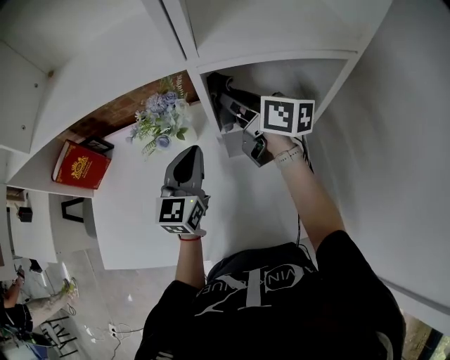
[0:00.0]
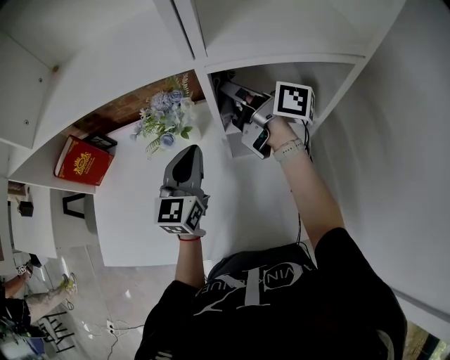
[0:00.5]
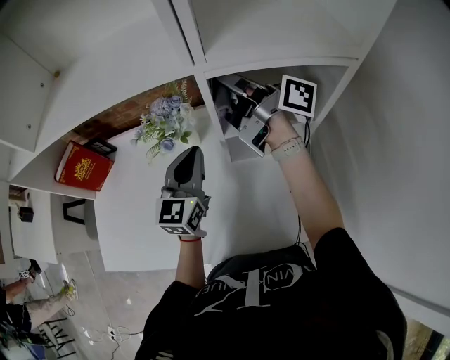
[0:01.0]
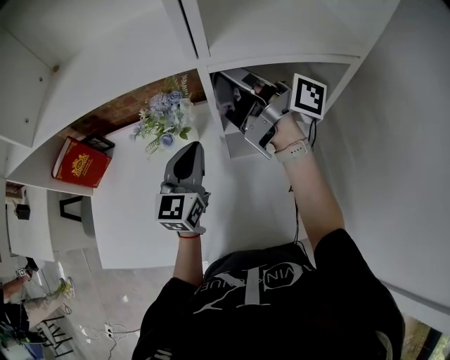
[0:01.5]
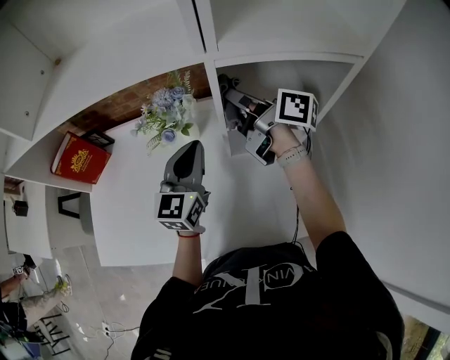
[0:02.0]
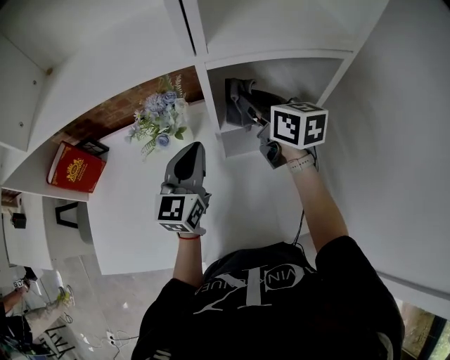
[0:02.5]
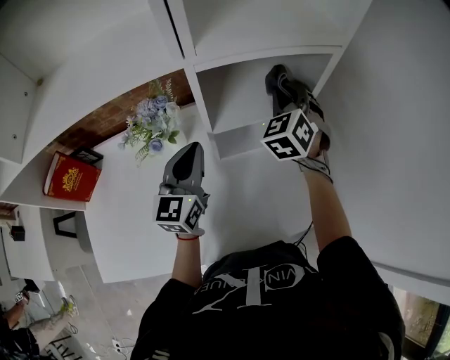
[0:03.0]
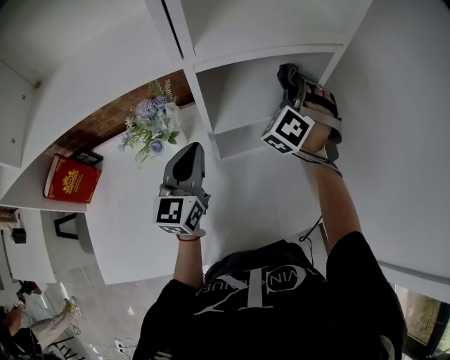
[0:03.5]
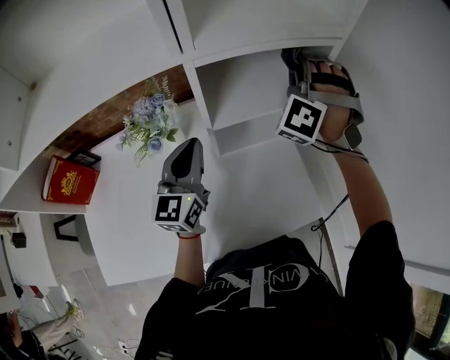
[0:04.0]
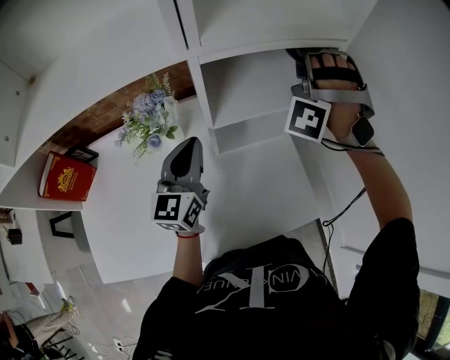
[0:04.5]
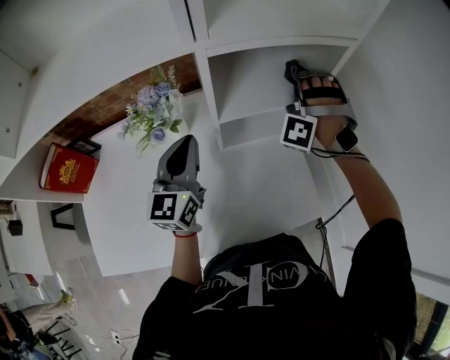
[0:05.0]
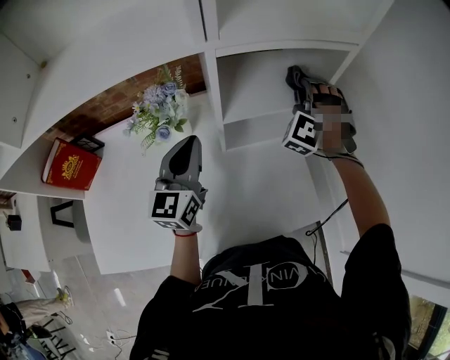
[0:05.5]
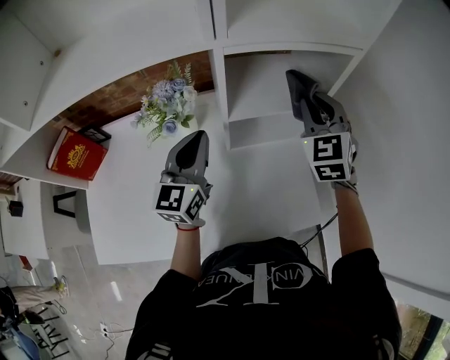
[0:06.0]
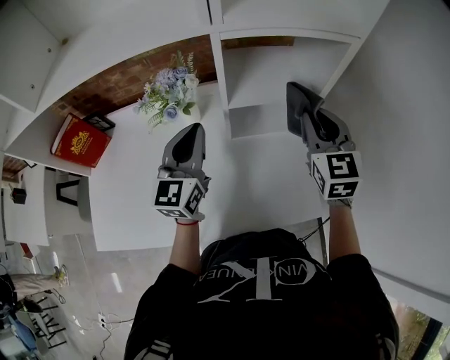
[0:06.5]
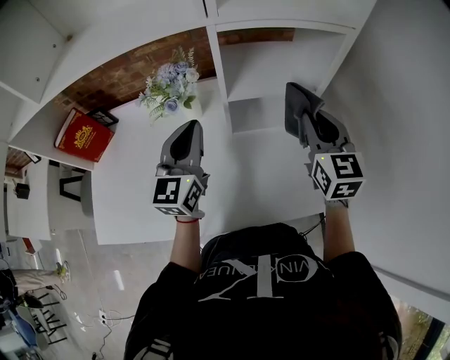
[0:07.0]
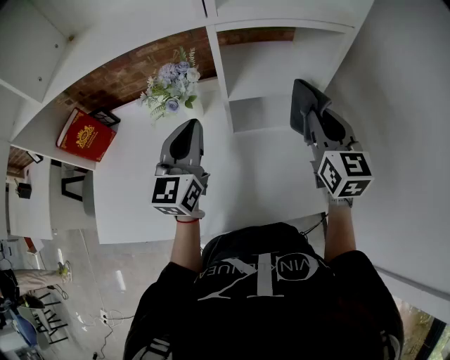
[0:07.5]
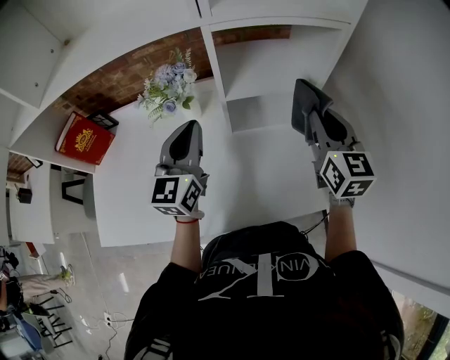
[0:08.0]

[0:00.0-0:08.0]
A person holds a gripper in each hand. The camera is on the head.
0:00.0 to 0:02.0: The right gripper reaches some 10 cm upward, then returns, and turns by approximately 20 degrees.
0:02.0 to 0:04.0: The right gripper changes place by approximately 20 cm, and swivels some 160 degrees.
0:04.0 to 0:06.0: The right gripper moves backward, roughly 5 cm, moves roughly 10 cm downward and comes back, and rotates around the line of its fingers by approximately 50 degrees, clockwise from behind.
0:06.0 to 0:08.0: The right gripper heads backward, covering approximately 10 cm, and changes its angle by about 40 degrees.

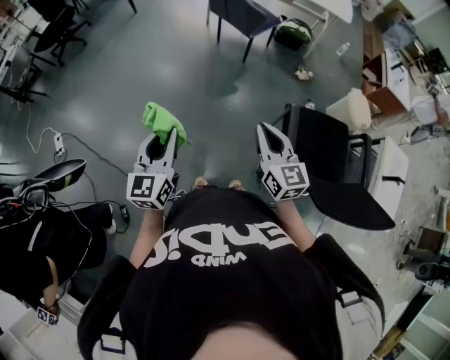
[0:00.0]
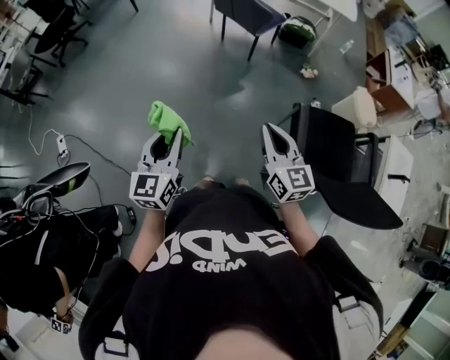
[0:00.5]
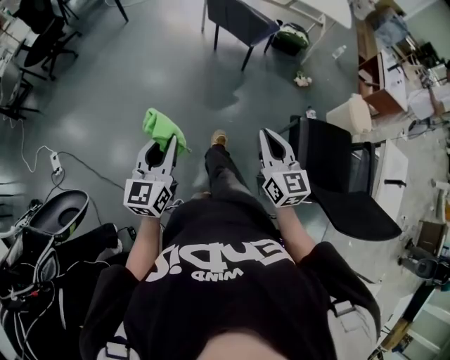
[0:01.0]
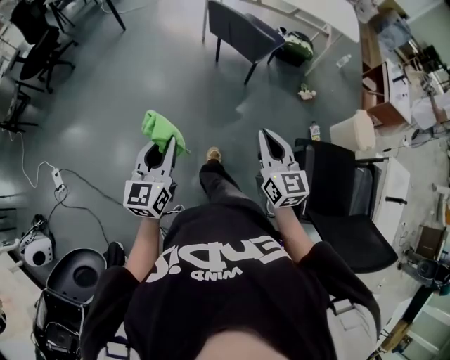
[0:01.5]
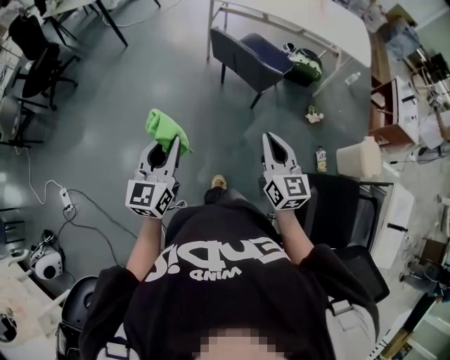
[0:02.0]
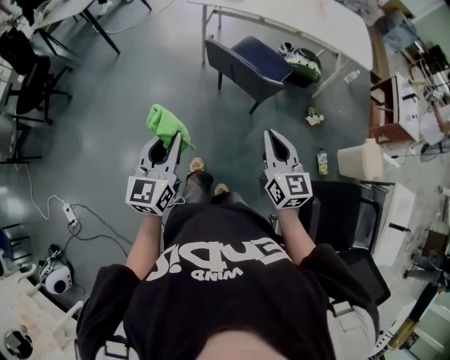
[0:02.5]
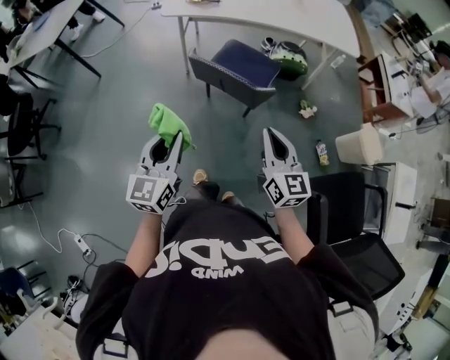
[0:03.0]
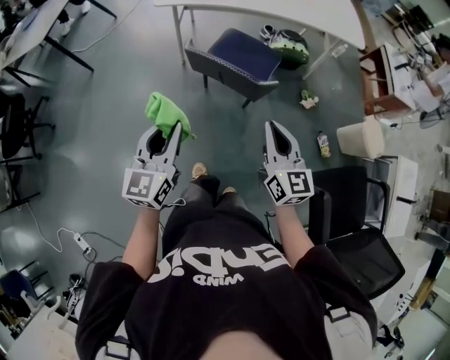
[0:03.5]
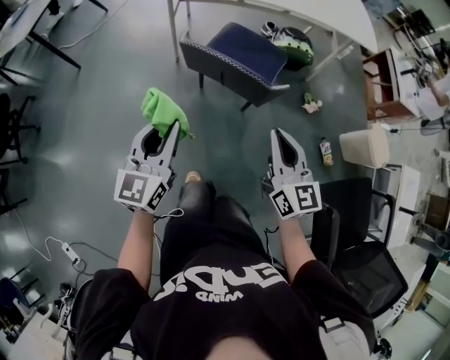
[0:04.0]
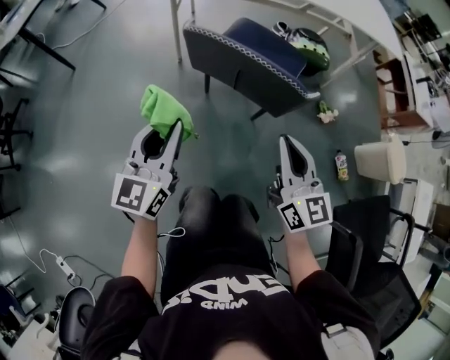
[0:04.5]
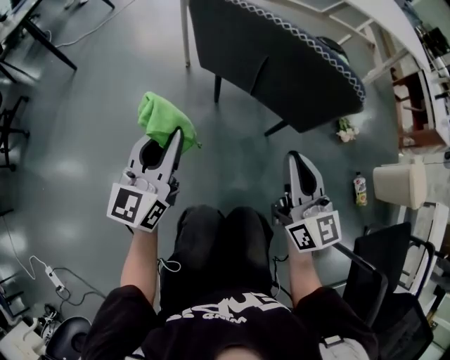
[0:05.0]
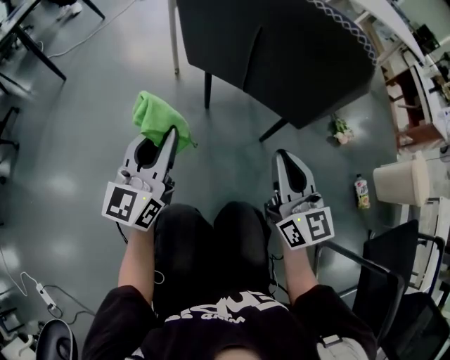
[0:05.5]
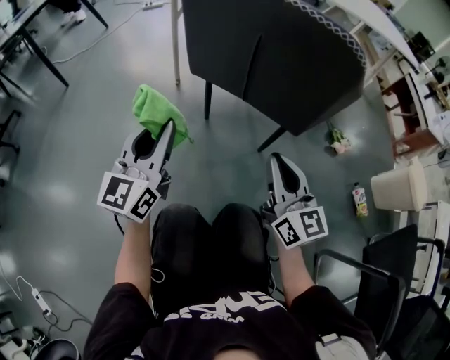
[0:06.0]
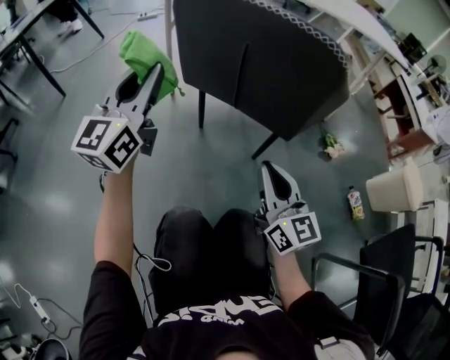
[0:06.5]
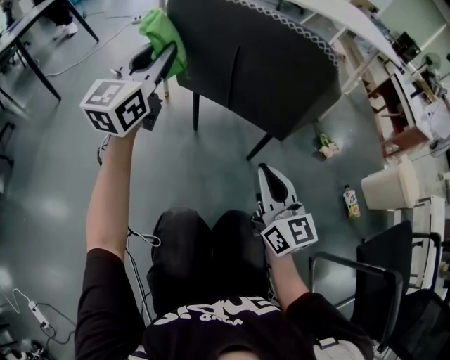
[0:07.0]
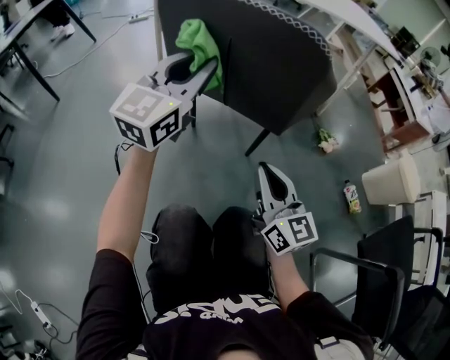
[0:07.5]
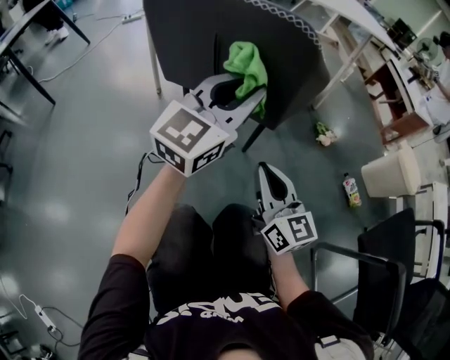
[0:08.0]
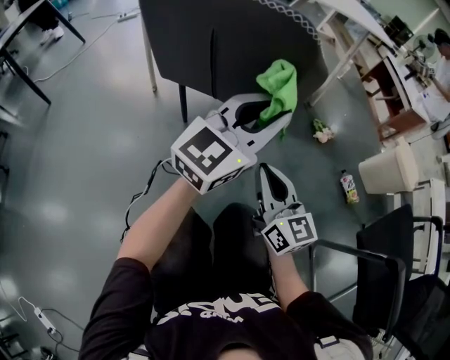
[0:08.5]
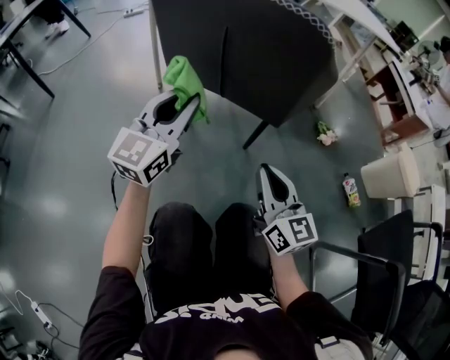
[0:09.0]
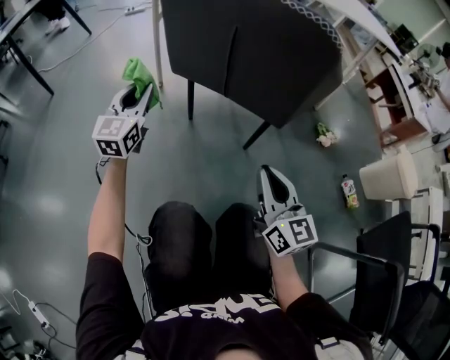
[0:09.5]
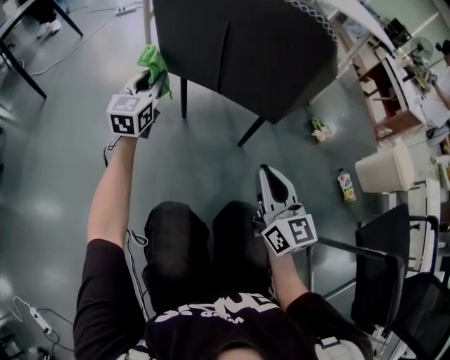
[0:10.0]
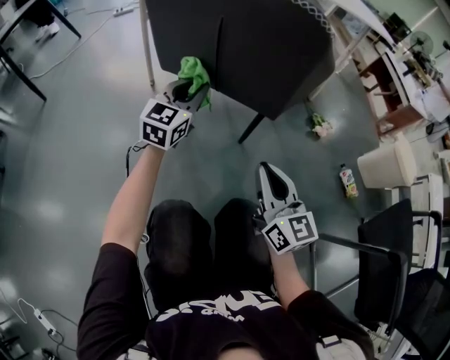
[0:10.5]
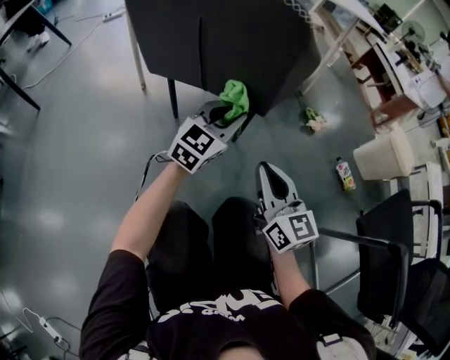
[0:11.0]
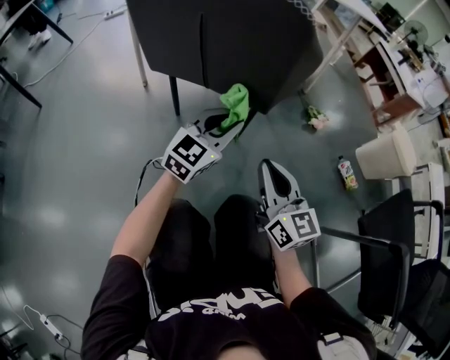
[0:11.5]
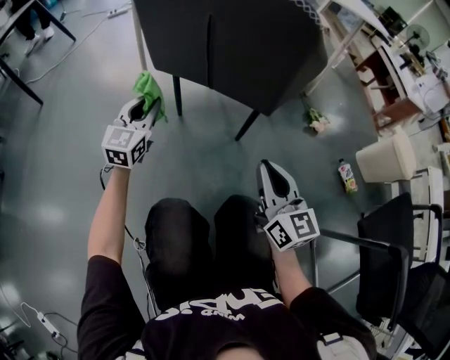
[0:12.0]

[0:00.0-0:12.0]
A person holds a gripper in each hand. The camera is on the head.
0:00.0 to 0:02.0: The two grippers travel together, forward, roughly 40 cm.
0:02.0 to 0:04.0: The two grippers go about 25 cm forward.
0:04.0 to 0:06.0: The grippers both shift downward by approximately 30 cm.
0:06.0 to 0:08.0: The right gripper moves about 5 cm, while the left gripper travels to the right by approximately 25 cm, and swivels approximately 30 degrees.
0:08.0 to 0:10.0: The left gripper goes left and right, about 35 cm each way, reversing 2 times, and turns by some 30 degrees.
0:10.0 to 0:12.0: The left gripper goes approximately 5 cm backward, and reaches roughly 25 cm to the right, then returns.

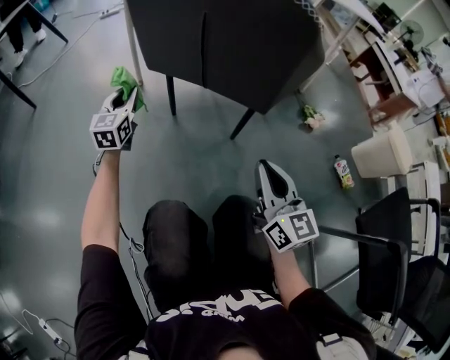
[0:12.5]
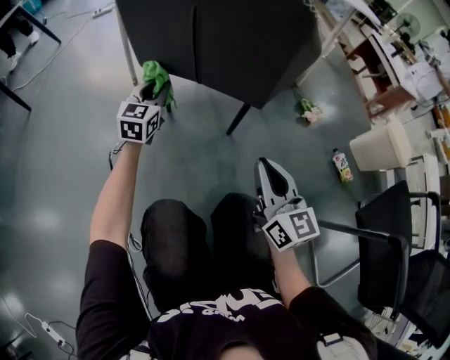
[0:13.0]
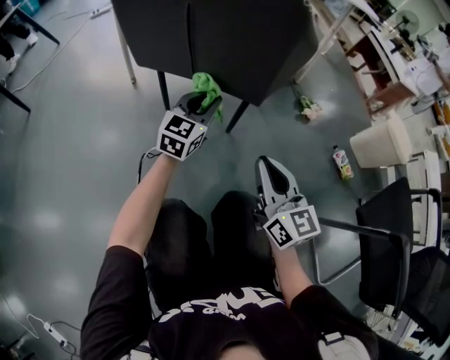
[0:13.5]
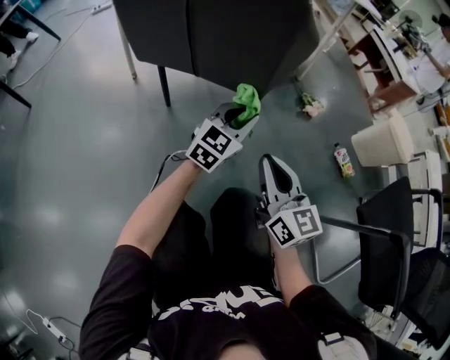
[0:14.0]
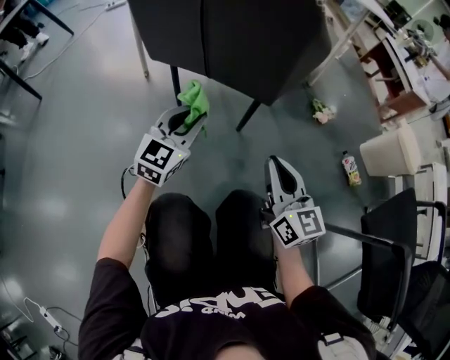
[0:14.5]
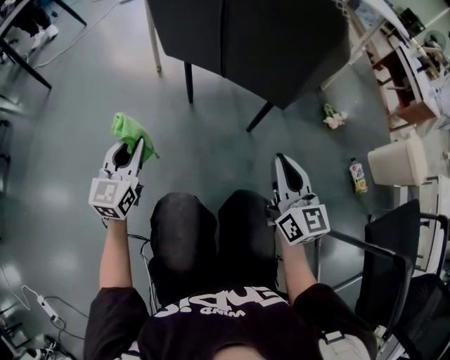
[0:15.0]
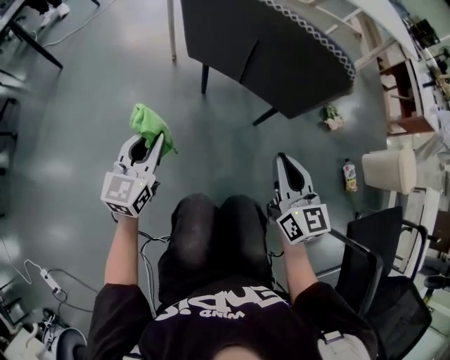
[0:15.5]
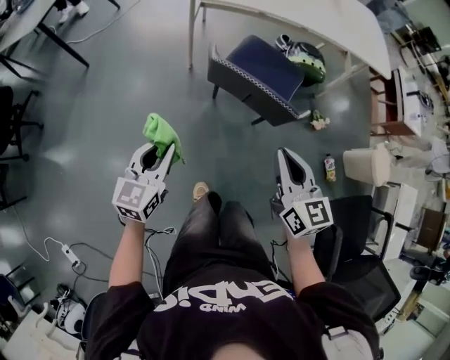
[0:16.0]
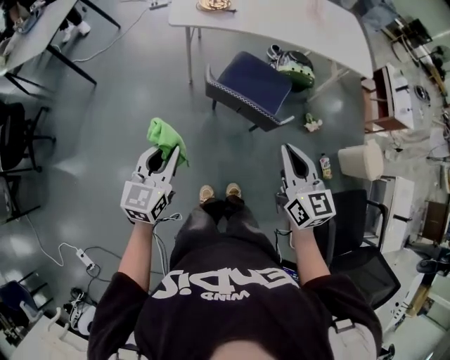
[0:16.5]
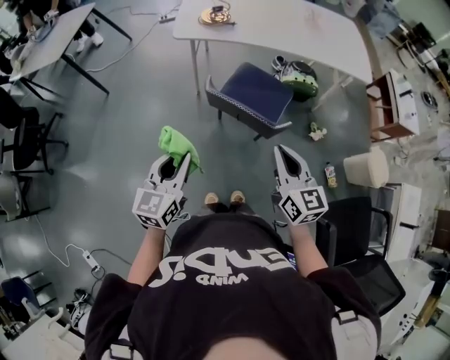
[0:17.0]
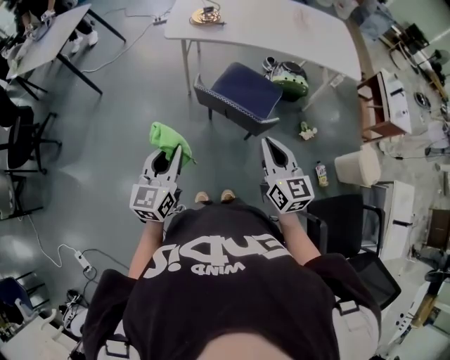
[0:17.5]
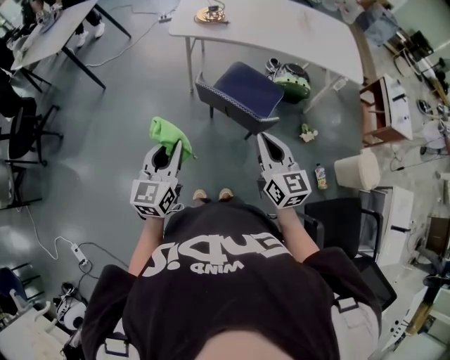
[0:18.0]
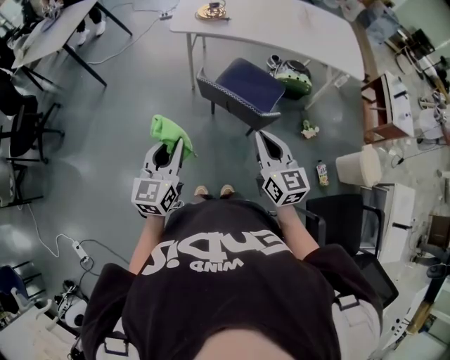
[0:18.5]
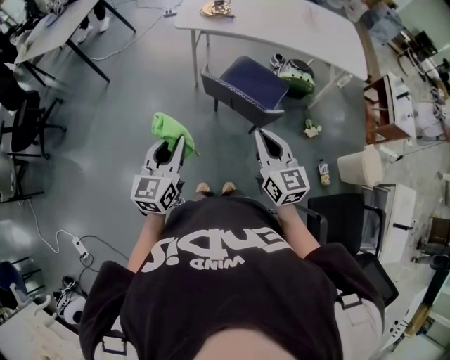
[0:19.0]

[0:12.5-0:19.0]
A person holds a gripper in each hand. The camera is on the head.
0:12.5 to 0:14.5: The left gripper goes some 25 cm to the right and backward, and changes its angle by some 30 degrees.
0:14.5 to 0:17.0: The grippers both shift upward by approximately 50 cm. The left gripper swivels about 30 degrees.
0:17.0 to 0:19.0: There are only small adjustments of the grippers.
